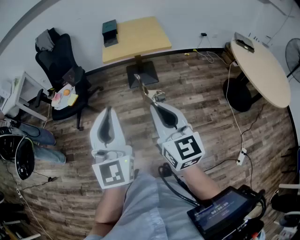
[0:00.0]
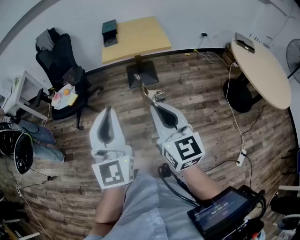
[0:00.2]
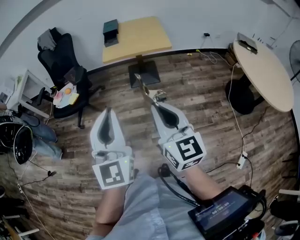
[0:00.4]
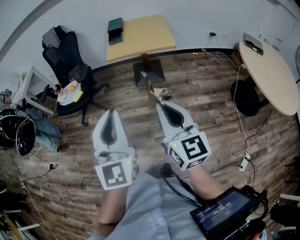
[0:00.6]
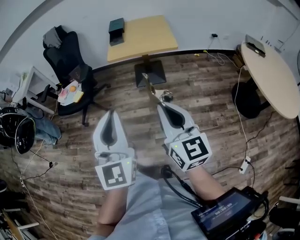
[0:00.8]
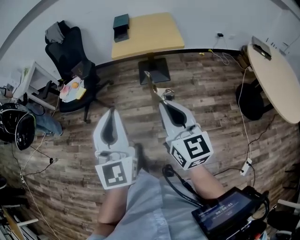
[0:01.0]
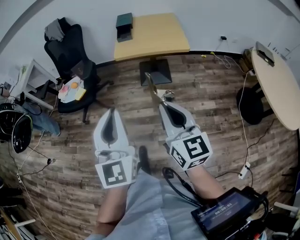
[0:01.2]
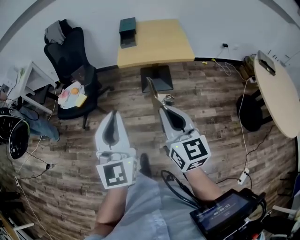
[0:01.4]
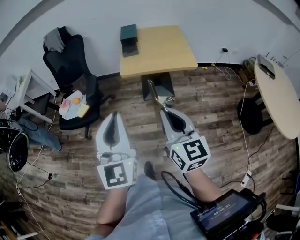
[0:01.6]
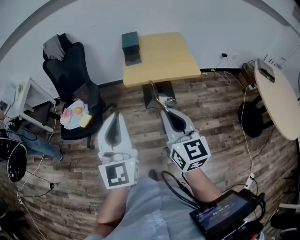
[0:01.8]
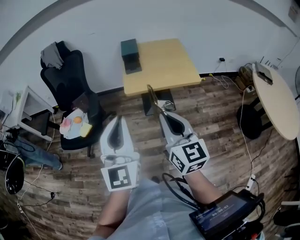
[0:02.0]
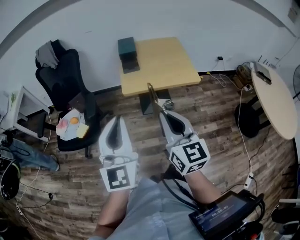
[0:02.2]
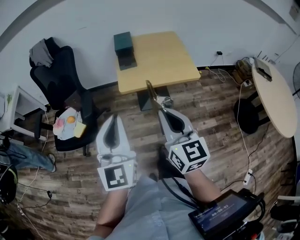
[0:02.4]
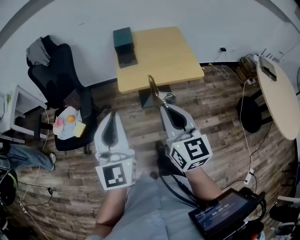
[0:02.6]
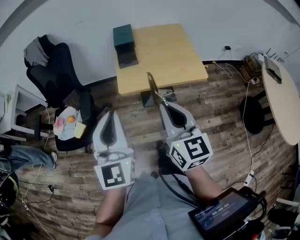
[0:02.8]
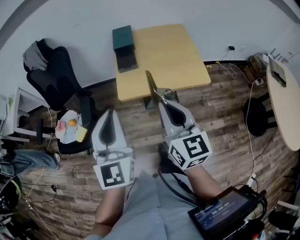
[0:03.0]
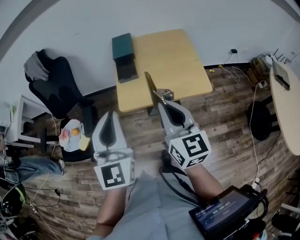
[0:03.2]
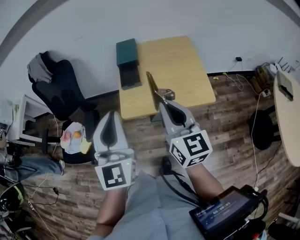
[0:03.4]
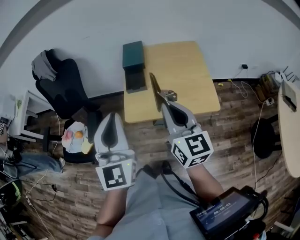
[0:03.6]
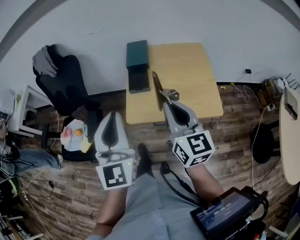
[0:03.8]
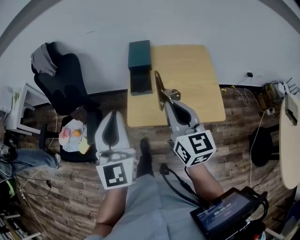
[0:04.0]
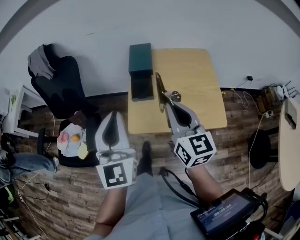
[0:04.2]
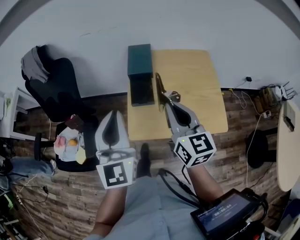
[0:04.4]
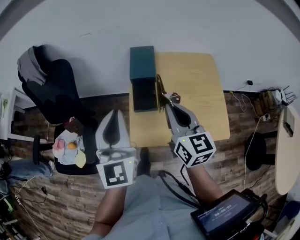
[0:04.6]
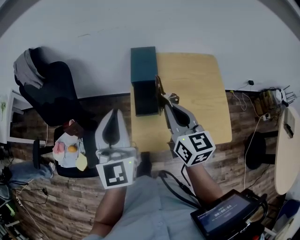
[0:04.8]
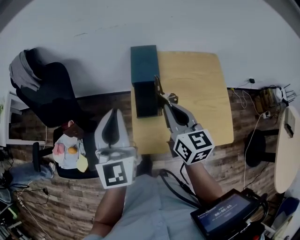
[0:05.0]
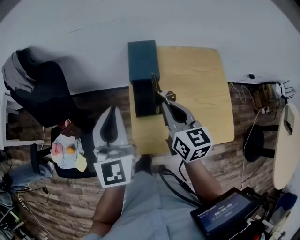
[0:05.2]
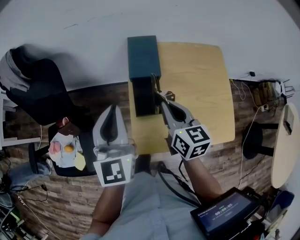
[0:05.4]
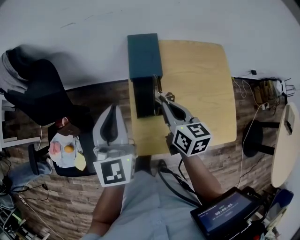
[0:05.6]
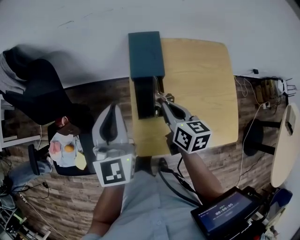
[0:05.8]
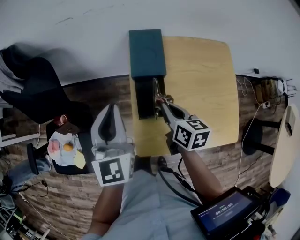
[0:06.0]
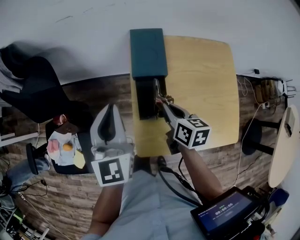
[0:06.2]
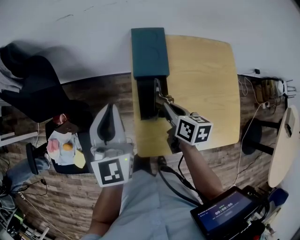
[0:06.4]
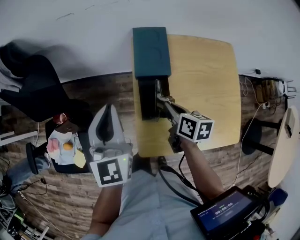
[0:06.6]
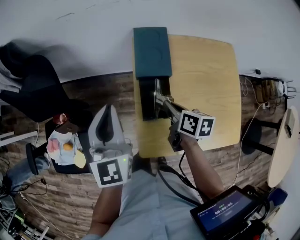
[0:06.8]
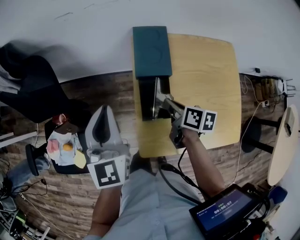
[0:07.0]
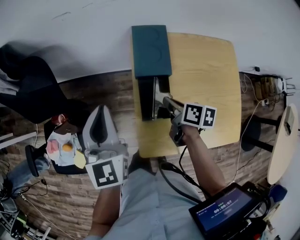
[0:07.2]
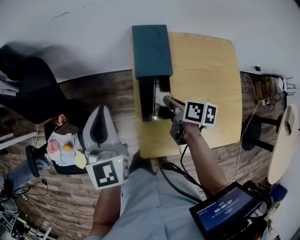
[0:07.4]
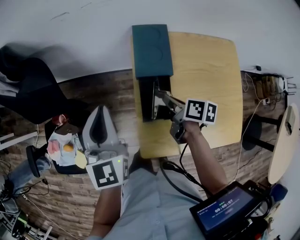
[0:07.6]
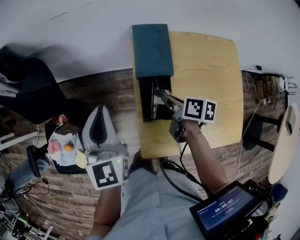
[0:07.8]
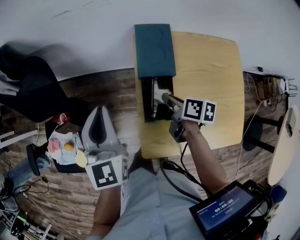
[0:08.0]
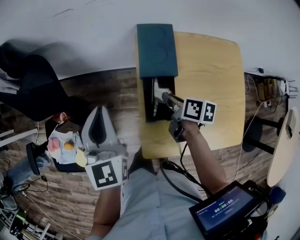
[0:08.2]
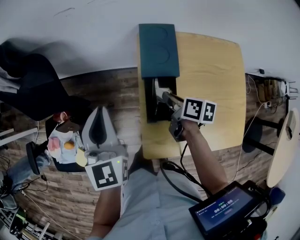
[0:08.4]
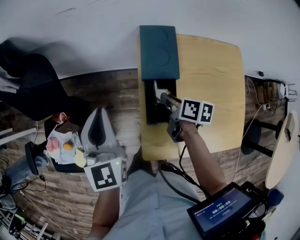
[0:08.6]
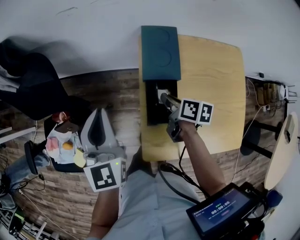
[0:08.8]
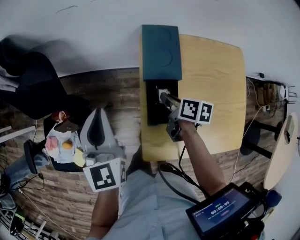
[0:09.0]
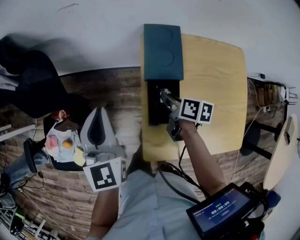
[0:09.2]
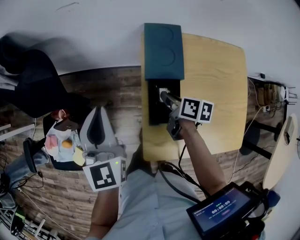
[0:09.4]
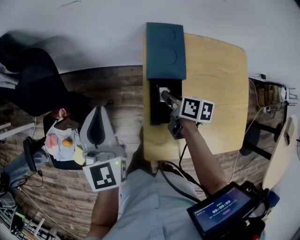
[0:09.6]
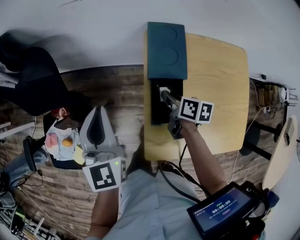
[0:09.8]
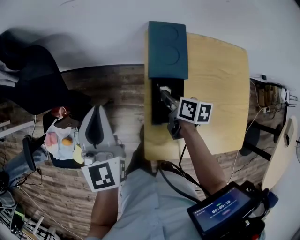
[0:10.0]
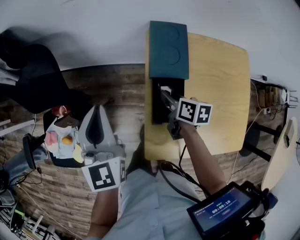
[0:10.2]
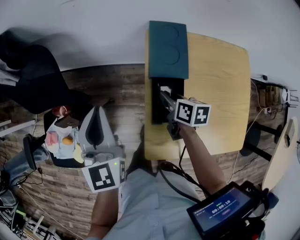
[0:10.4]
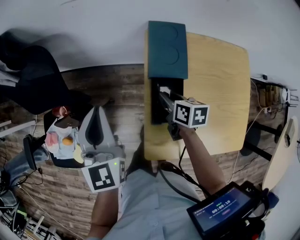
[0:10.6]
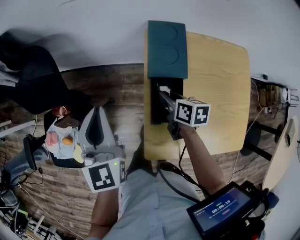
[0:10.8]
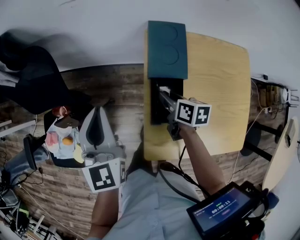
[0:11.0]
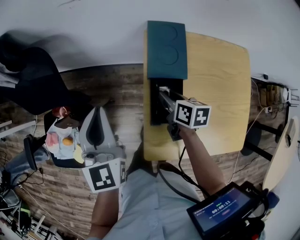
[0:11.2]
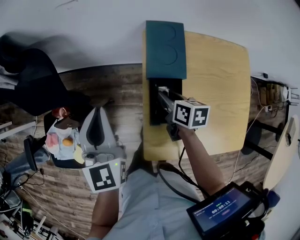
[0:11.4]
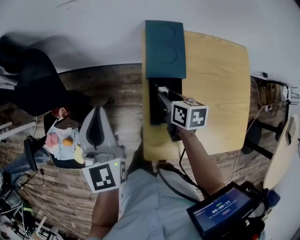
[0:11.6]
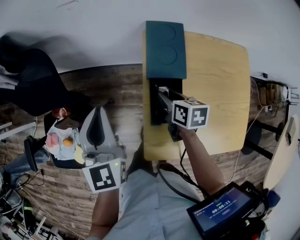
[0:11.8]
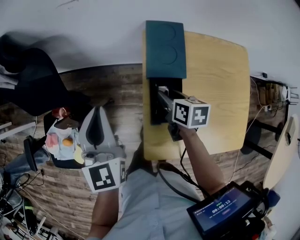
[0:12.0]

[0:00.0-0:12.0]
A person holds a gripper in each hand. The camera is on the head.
0:00.0 to 0:01.6: Both grippers move forward, about 20 cm.
0:01.6 to 0:03.0: The grippers both shift forward by some 25 cm.
0:03.0 to 0:04.4: The grippers both shift forward by about 25 cm.
0:04.4 to 0:06.0: The left gripper travels forward and downward by about 25 cm, while the right gripper is displaced downward and forward by roughly 25 cm, and turns by approximately 40 degrees.
0:06.0 to 0:07.6: The right gripper shifts roughly 5 cm downward, and turns by some 30 degrees; the left gripper ends up approximately 5 cm from where it was.
0:07.6 to 0:09.0: There are only small adjustments of the grippers.
0:09.0 to 0:12.0: The grippers stay close to where they were, moving slightly.

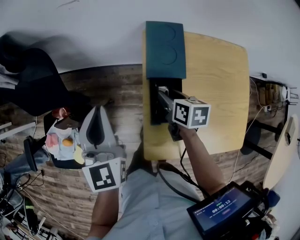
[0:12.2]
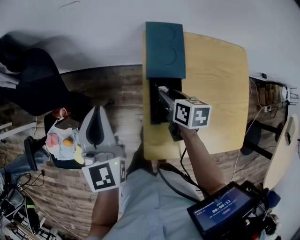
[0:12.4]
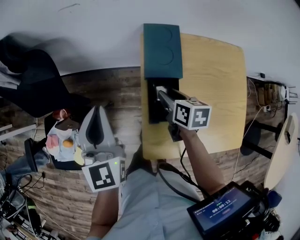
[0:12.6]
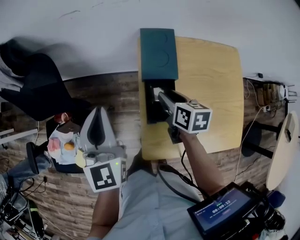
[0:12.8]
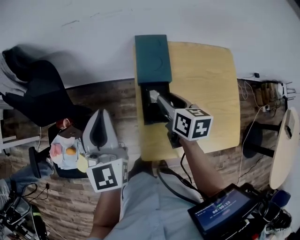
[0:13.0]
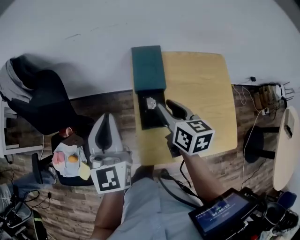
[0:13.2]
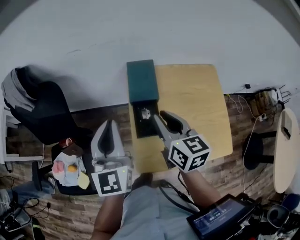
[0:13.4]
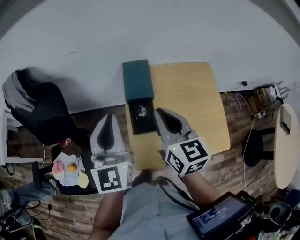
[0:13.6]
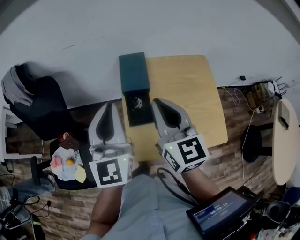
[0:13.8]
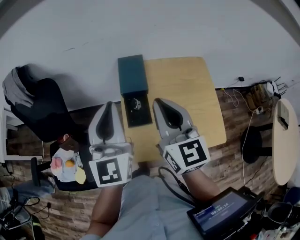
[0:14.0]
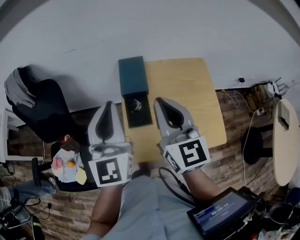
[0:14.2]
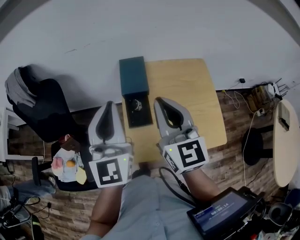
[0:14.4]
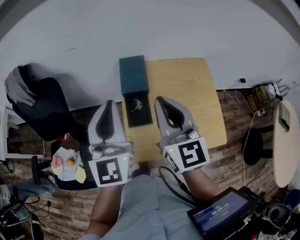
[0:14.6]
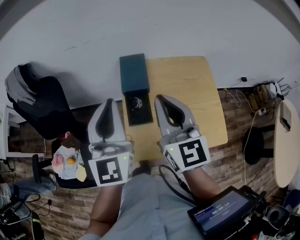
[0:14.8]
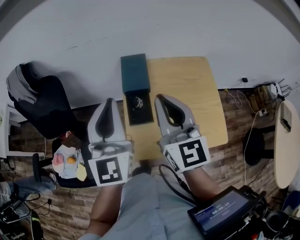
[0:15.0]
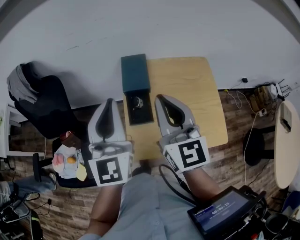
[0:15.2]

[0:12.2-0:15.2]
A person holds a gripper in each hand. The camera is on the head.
0:12.2 to 0:13.8: The right gripper moves upward and backward, approximately 35 cm, tilts its fingers roughly 40 degrees upward, and closes; the left gripper moves upward, to the right and backward, approximately 25 cm, and rotates approximately 20 degrees.
0:13.8 to 0:15.2: There are only small adjustments of the grippers.

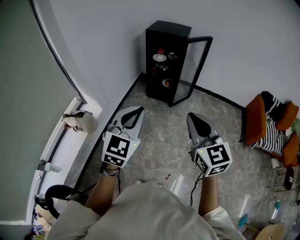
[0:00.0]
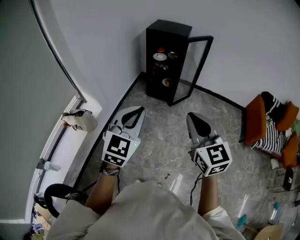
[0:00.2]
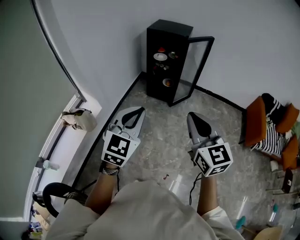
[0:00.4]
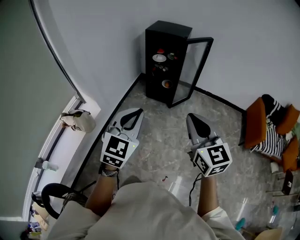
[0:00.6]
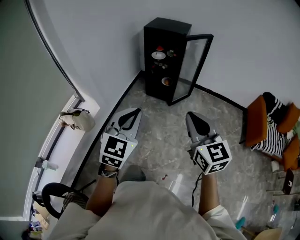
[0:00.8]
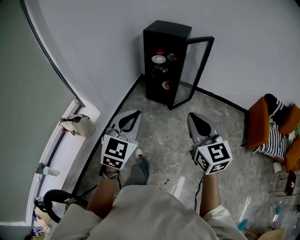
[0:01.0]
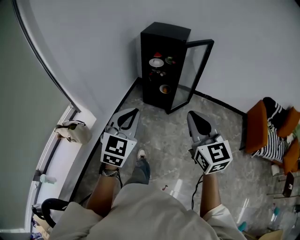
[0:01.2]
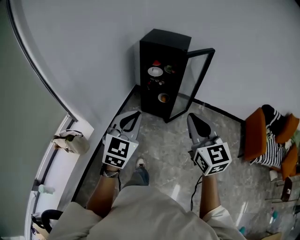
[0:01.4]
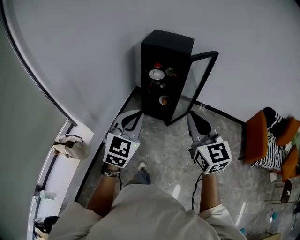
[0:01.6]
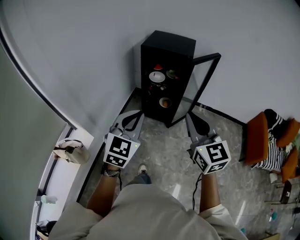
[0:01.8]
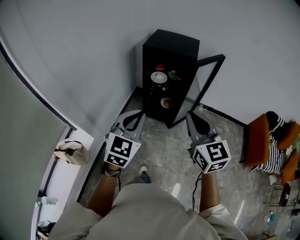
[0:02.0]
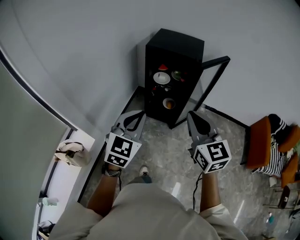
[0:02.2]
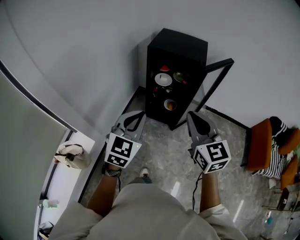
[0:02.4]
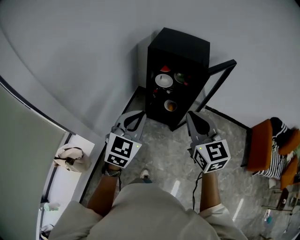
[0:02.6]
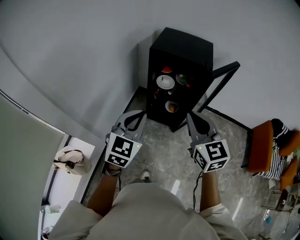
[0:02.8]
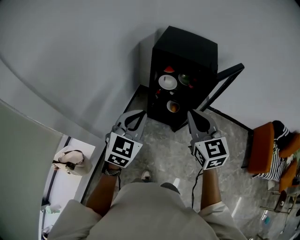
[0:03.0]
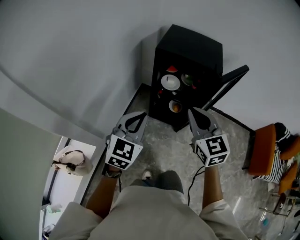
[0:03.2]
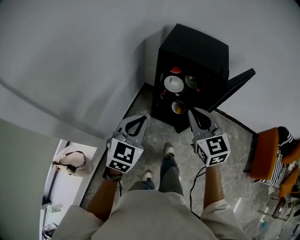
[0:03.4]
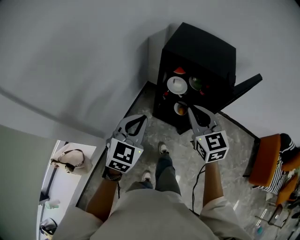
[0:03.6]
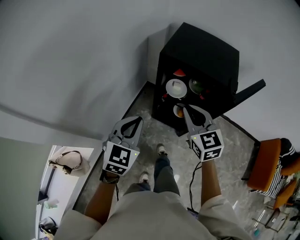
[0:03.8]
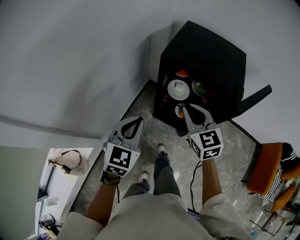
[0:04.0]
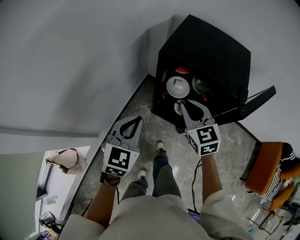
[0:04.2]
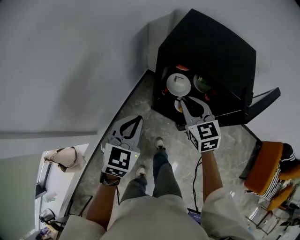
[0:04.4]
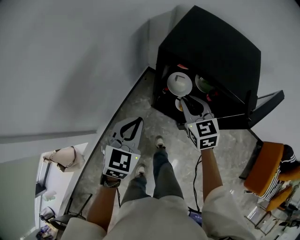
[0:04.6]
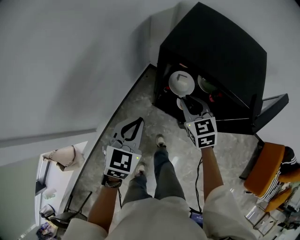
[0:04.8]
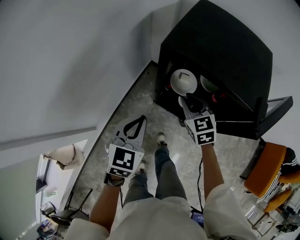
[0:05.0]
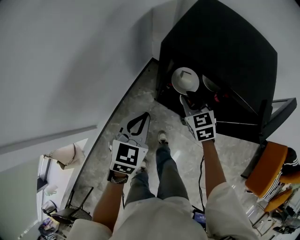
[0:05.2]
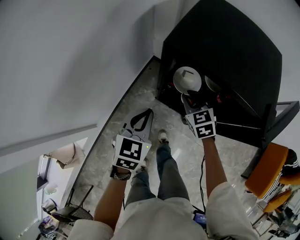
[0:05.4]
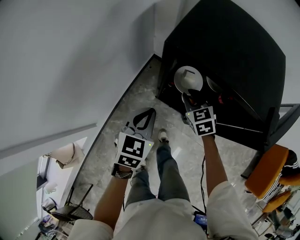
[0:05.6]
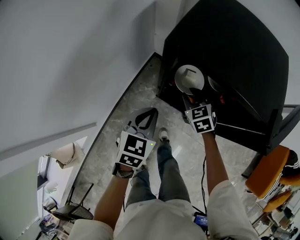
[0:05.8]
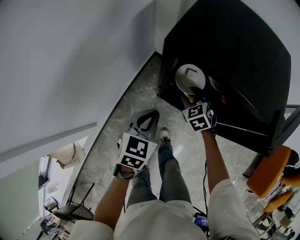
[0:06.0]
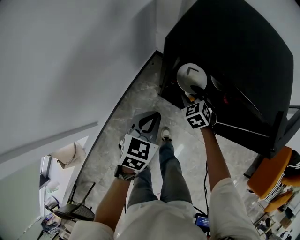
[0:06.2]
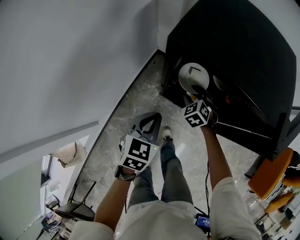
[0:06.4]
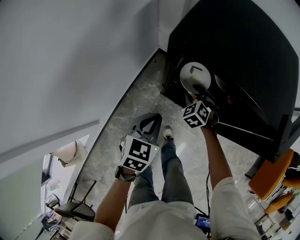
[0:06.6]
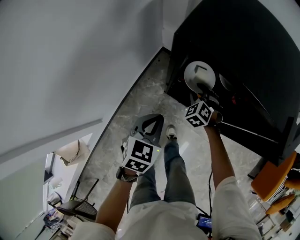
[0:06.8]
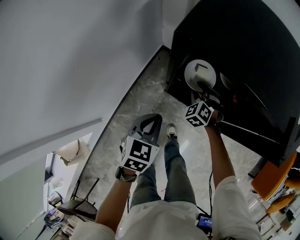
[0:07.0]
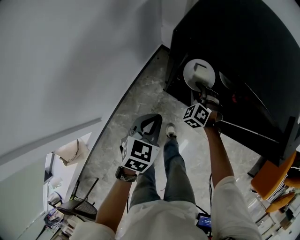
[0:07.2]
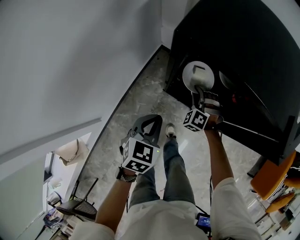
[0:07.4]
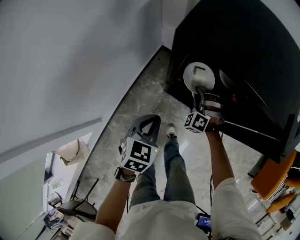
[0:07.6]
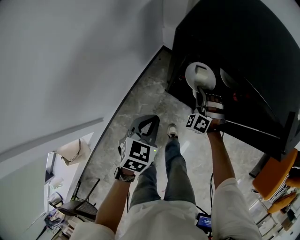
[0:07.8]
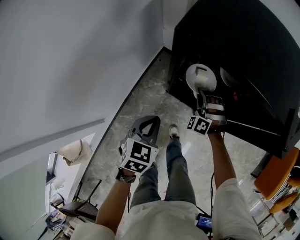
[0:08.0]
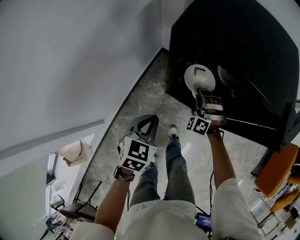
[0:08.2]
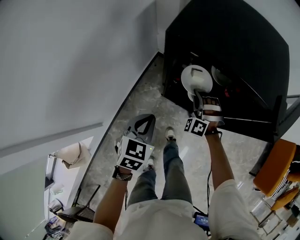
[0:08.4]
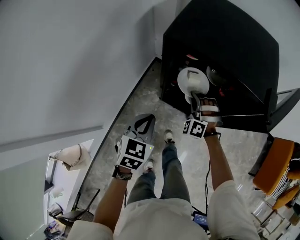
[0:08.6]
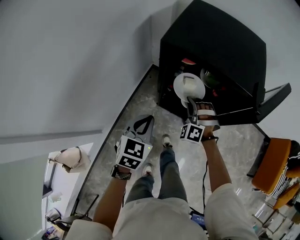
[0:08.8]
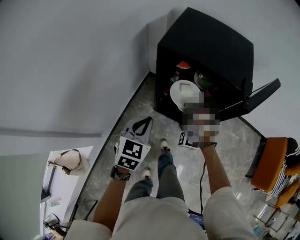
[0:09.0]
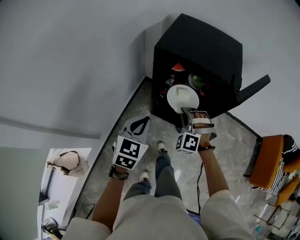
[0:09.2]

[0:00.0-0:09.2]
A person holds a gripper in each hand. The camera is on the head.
0:00.0 to 0:01.6: Both grippers move forward, about 25 cm.
0:01.6 to 0:03.0: The grippers both shift forward by some 25 cm.
0:03.0 to 0:04.6: The left gripper heads forward and downward, covering some 25 cm. Meanwhile the right gripper travels forward and downward by about 35 cm.
0:04.6 to 0:06.2: The right gripper heads downward, covering some 20 cm, turns by roughly 30 degrees, and opens, while the left gripper moves downward and forward, about 15 cm.
0:06.2 to 0:07.6: The right gripper swivels roughly 40 degrees, and closes up.
0:07.6 to 0:09.2: Both grippers move upward and backward, roughly 20 cm.
